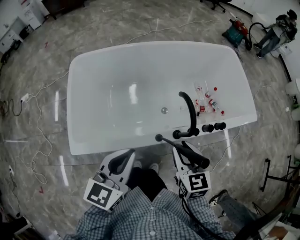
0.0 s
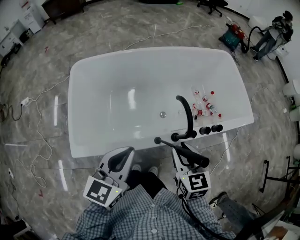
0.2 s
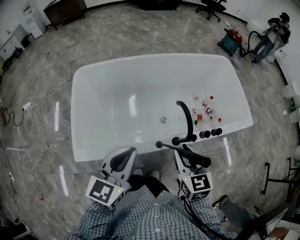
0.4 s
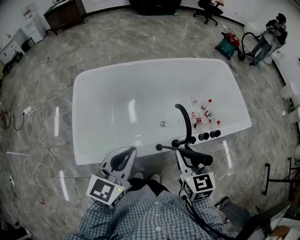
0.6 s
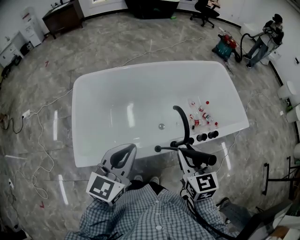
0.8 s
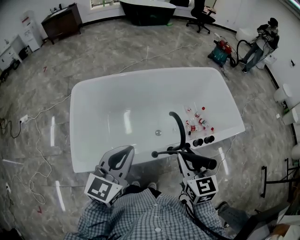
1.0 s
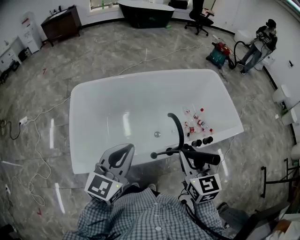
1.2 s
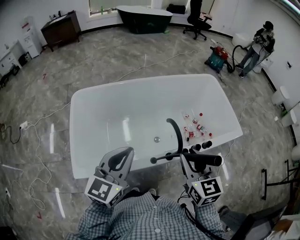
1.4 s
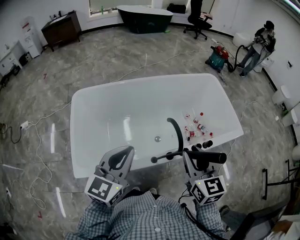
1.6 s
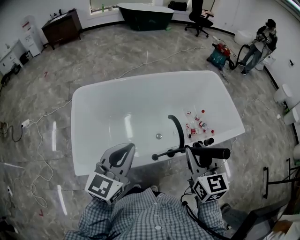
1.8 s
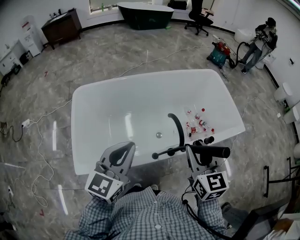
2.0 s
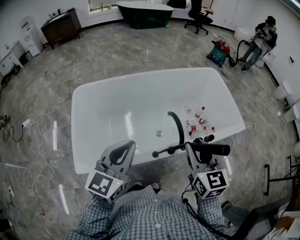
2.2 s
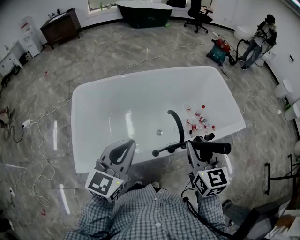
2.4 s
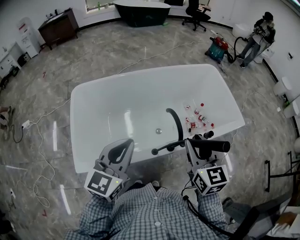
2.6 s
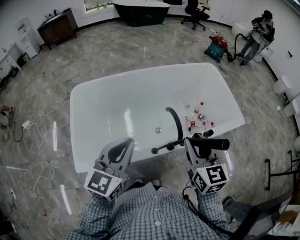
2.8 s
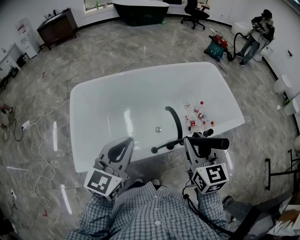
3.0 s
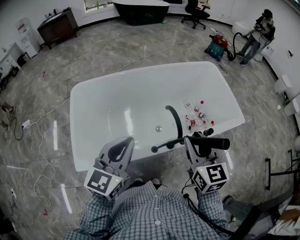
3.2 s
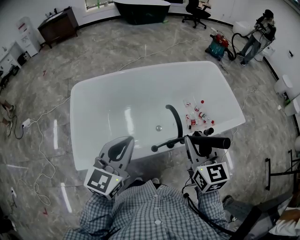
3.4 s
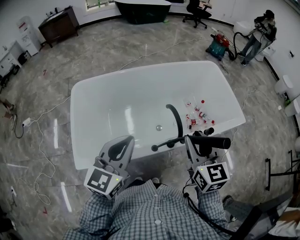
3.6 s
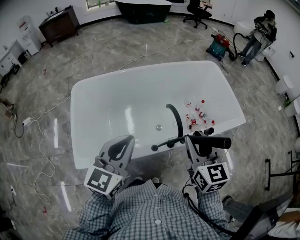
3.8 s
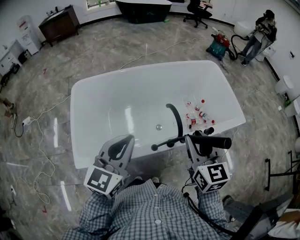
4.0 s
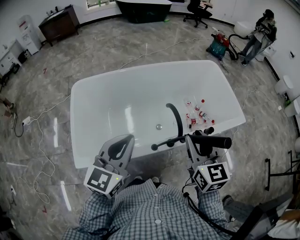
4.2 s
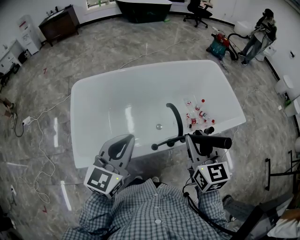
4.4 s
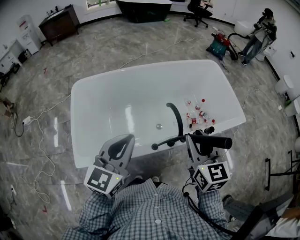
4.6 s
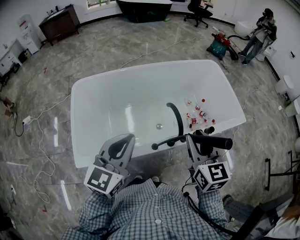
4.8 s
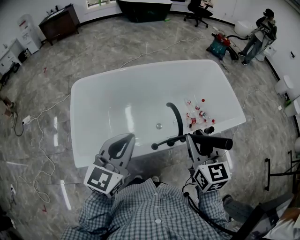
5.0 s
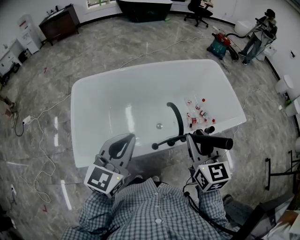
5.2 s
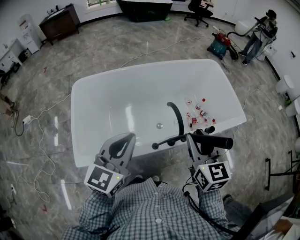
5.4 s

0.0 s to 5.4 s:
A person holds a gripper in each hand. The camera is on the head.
0.0 to 1.4 s: The grippers both shift upward by about 10 cm.
1.4 to 2.8 s: There are only small adjustments of the grippers.
2.8 to 5.4 s: Both grippers stay about where they are.

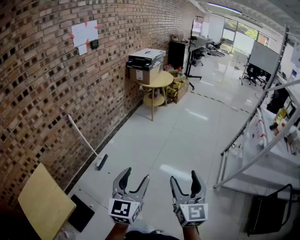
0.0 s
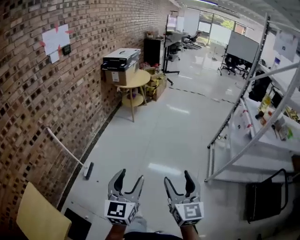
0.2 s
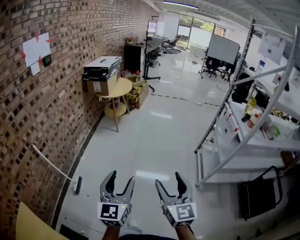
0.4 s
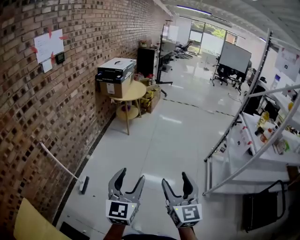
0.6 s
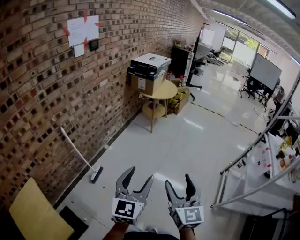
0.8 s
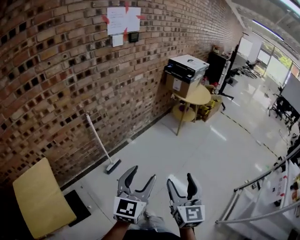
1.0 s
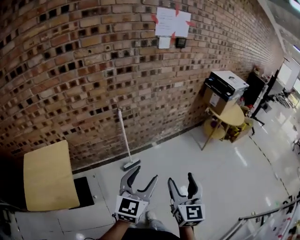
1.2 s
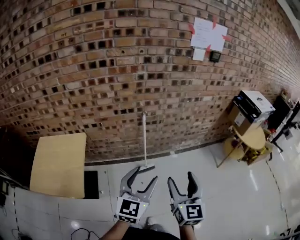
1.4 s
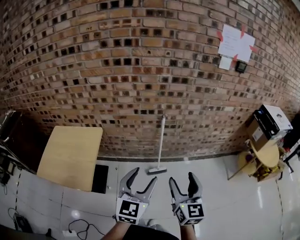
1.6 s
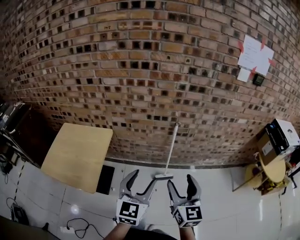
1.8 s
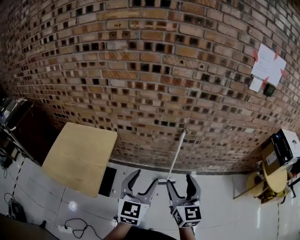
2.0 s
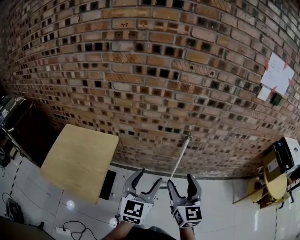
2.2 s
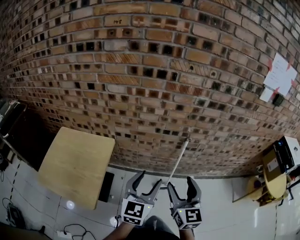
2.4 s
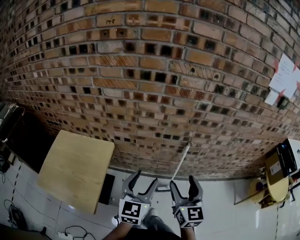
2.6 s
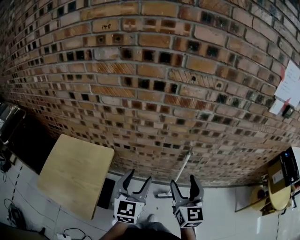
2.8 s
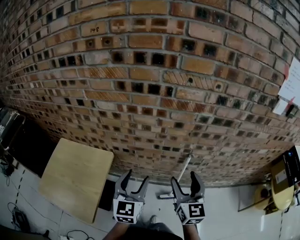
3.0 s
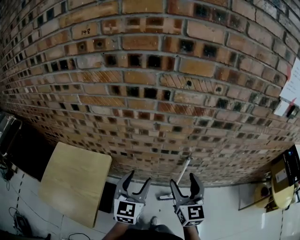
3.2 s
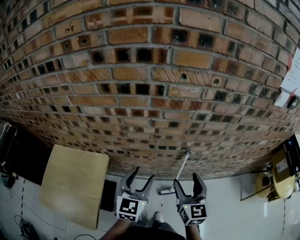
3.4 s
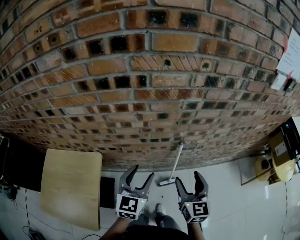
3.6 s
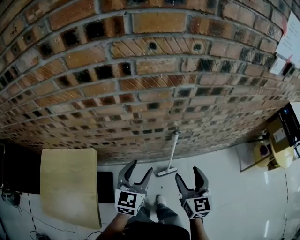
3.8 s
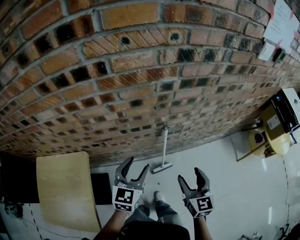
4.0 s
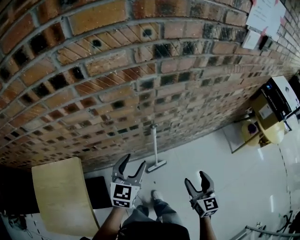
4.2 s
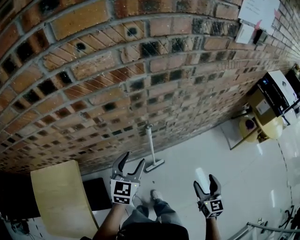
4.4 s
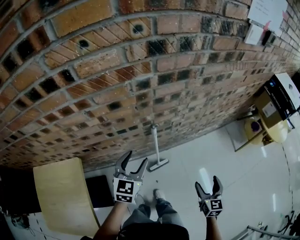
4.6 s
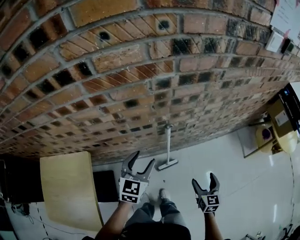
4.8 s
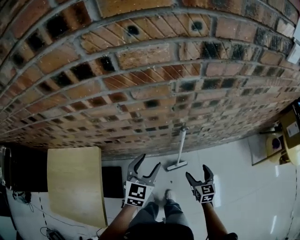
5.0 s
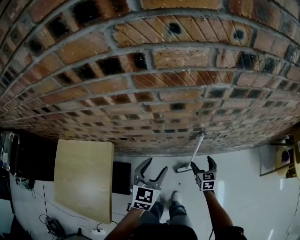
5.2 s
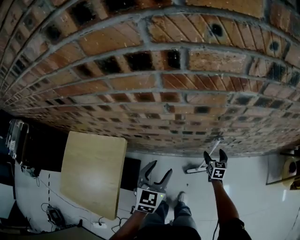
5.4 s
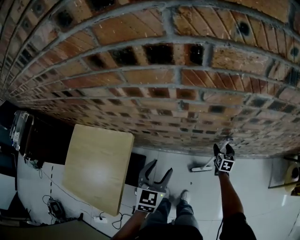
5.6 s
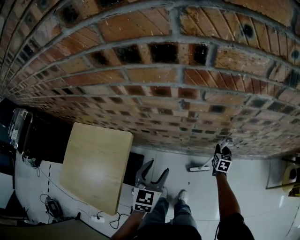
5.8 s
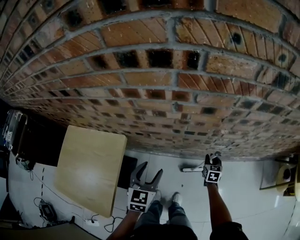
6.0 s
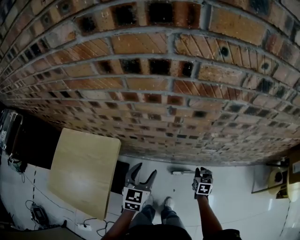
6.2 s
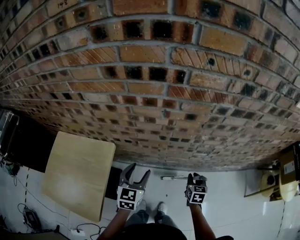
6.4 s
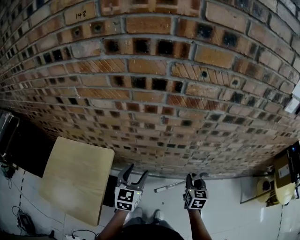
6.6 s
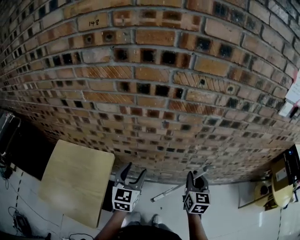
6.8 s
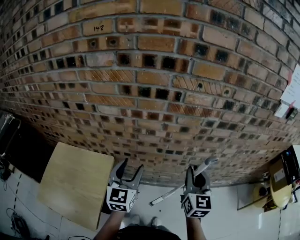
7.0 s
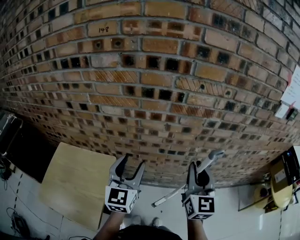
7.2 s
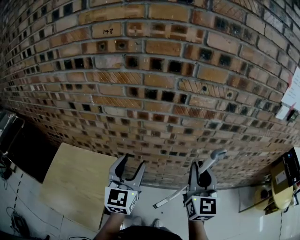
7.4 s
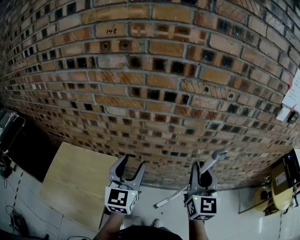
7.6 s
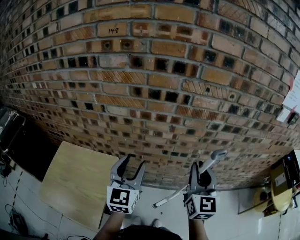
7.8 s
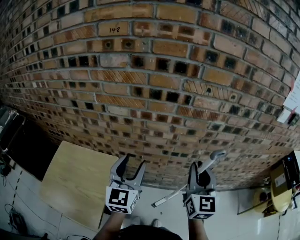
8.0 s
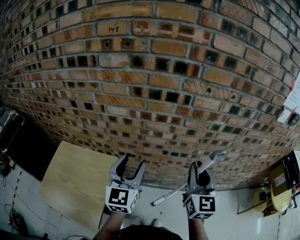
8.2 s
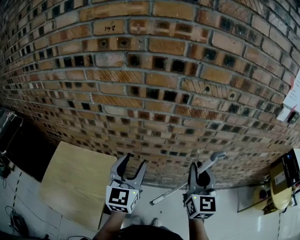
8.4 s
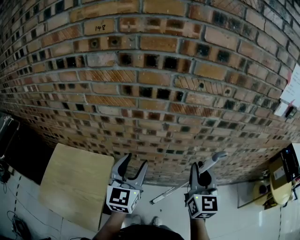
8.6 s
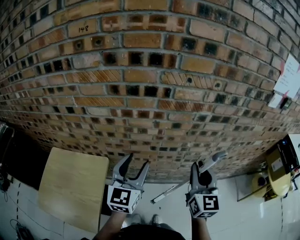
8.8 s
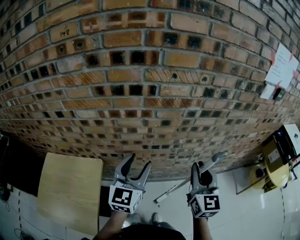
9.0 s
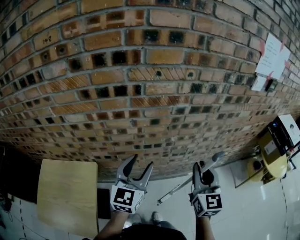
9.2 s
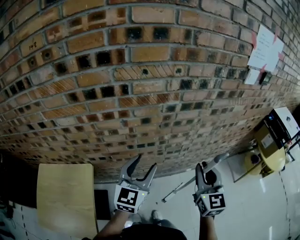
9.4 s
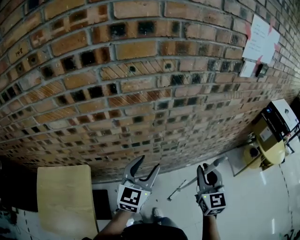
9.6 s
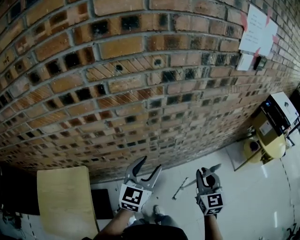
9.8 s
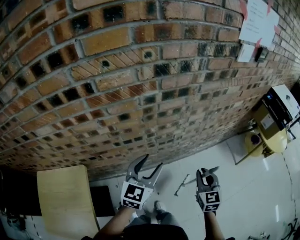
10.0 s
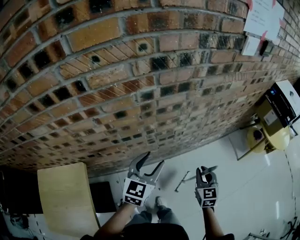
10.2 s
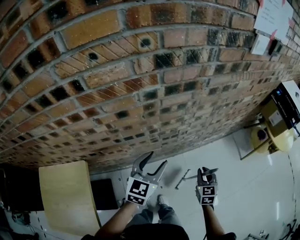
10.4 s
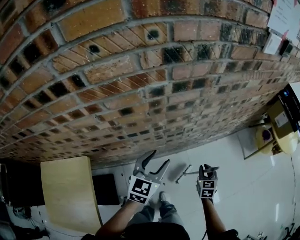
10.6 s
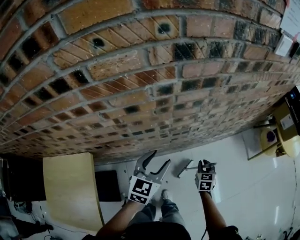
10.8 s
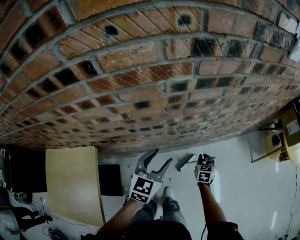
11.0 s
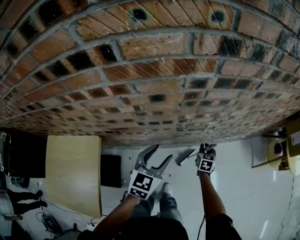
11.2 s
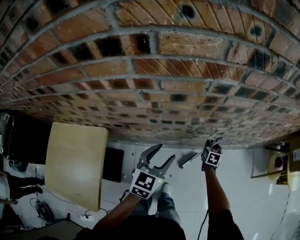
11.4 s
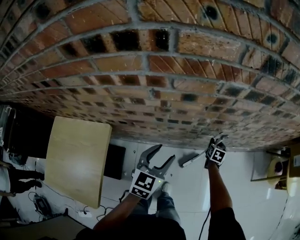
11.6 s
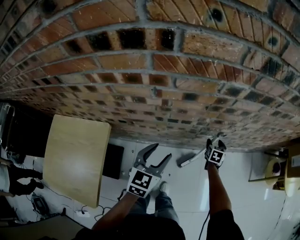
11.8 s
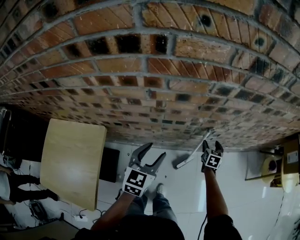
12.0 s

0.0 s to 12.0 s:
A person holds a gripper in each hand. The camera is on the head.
0.0 to 1.6 s: The left gripper changes place by roughly 40 cm, and changes its angle by roughly 60 degrees. Meanwhile the right gripper moves approximately 50 cm, and changes its angle by approximately 70 degrees.
1.6 to 3.0 s: The left gripper travels forward and to the left by approximately 35 cm. The right gripper heads forward, covering approximately 35 cm.
3.0 to 4.4 s: The right gripper changes place by roughly 35 cm, and swivels about 30 degrees. Meanwhile the left gripper changes place by approximately 25 cm, and swivels some 30 degrees.
4.4 to 6.0 s: The right gripper travels forward, to the left and downward by approximately 40 cm, rotates approximately 30 degrees, and closes up. Meanwhile the left gripper is displaced to the left by roughly 20 cm, and changes its angle by approximately 30 degrees.
6.0 to 7.6 s: The left gripper shifts about 25 cm upward, and turns by roughly 30 degrees, while the right gripper moves upward, roughly 50 cm, and tilts its fingers about 40 degrees upward.
7.6 to 9.0 s: The two grippers go approximately 10 cm to the right.
9.0 to 10.4 s: The right gripper shifts approximately 35 cm downward and to the right, and tilts its fingers approximately 30 degrees downward; the left gripper travels to the right, downward and forward by approximately 25 cm, and turns by about 30 degrees.
10.4 to 12.0 s: The left gripper shifts some 15 cm to the left, and changes its angle by some 20 degrees. The right gripper moves forward, to the left and downward, some 25 cm, and opens up.

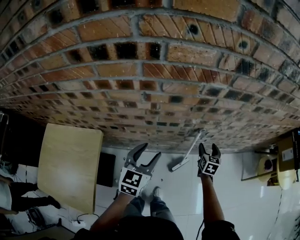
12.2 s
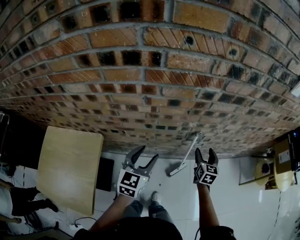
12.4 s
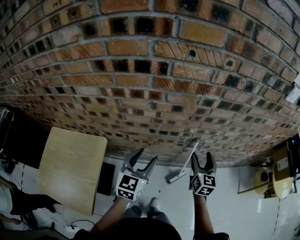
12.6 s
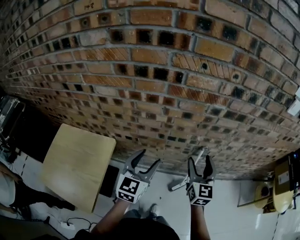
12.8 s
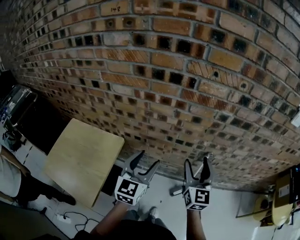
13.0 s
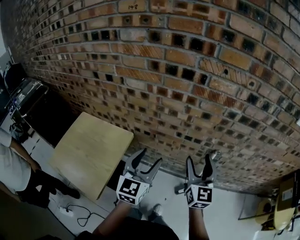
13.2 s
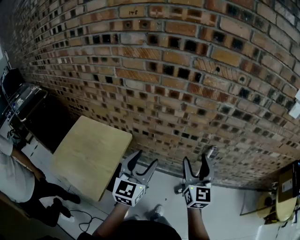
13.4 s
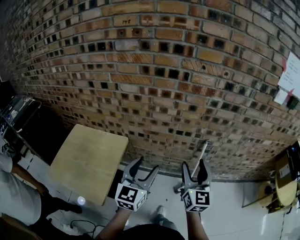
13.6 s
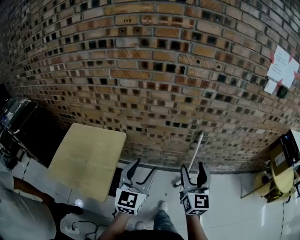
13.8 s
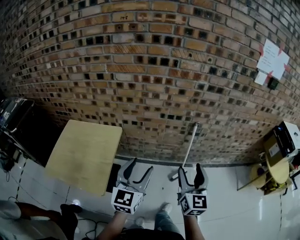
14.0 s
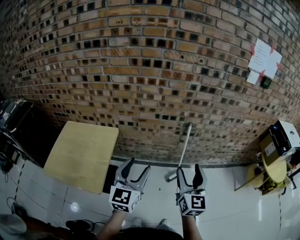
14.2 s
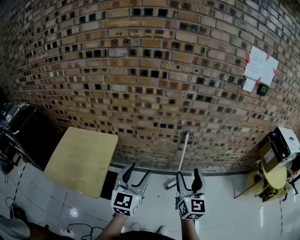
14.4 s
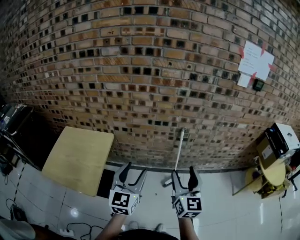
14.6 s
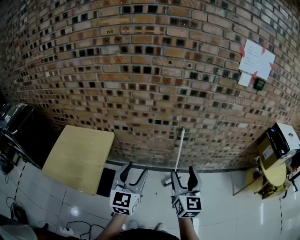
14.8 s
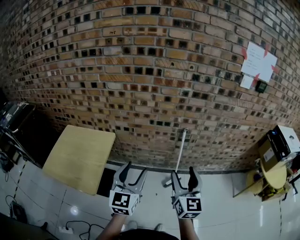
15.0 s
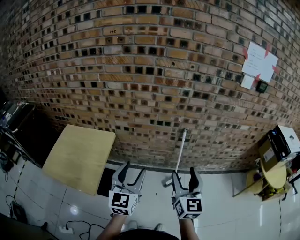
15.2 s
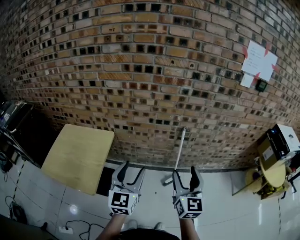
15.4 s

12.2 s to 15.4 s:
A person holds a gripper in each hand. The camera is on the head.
12.2 to 13.8 s: The right gripper is displaced backward, upward and to the left by some 50 cm, and tilts its fingers about 40 degrees upward; the left gripper shifts roughly 35 cm backward and upward, and turns by roughly 20 degrees.
13.8 to 15.4 s: The right gripper shifts roughly 10 cm backward and to the right. The left gripper travels backward by some 5 cm.

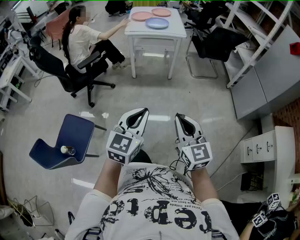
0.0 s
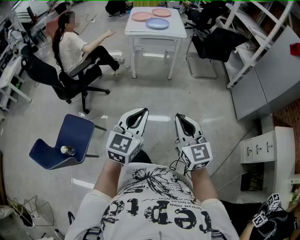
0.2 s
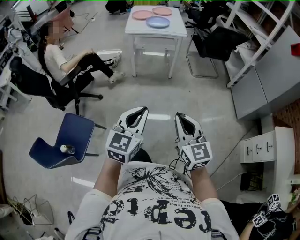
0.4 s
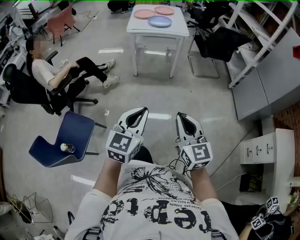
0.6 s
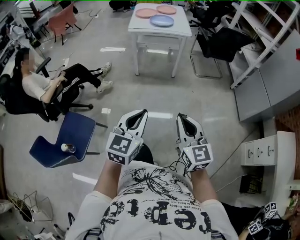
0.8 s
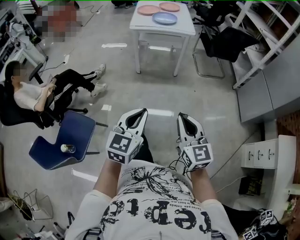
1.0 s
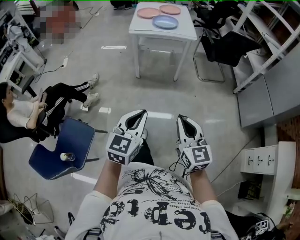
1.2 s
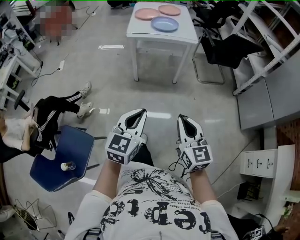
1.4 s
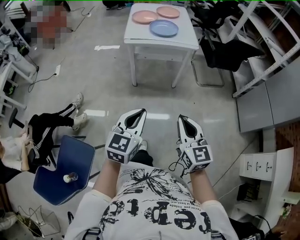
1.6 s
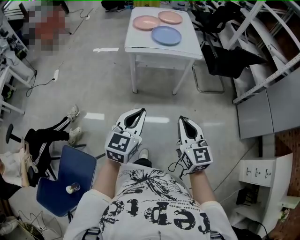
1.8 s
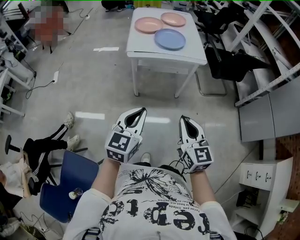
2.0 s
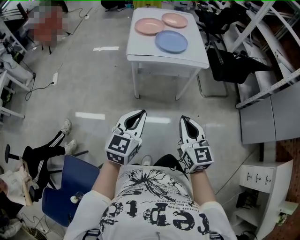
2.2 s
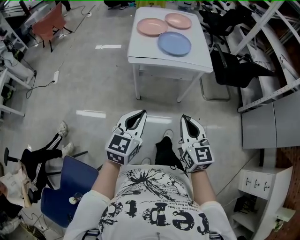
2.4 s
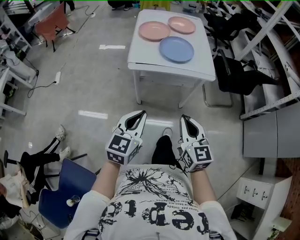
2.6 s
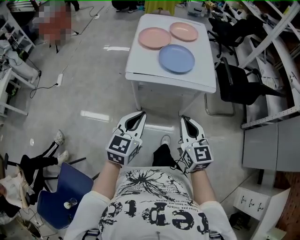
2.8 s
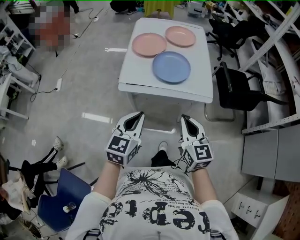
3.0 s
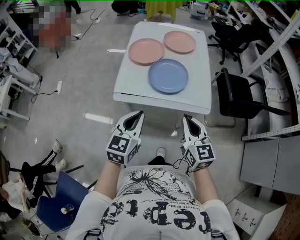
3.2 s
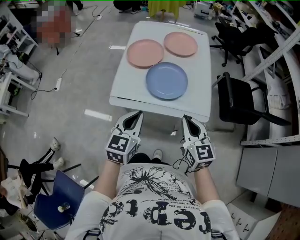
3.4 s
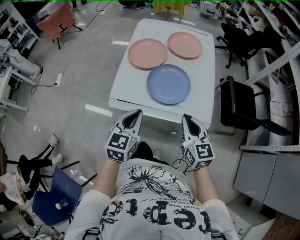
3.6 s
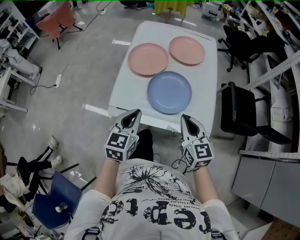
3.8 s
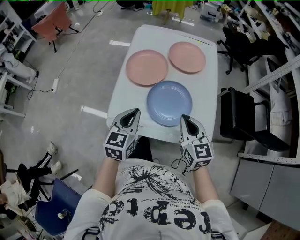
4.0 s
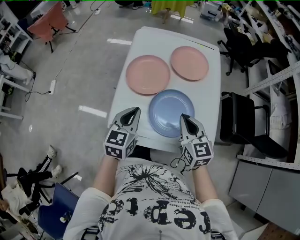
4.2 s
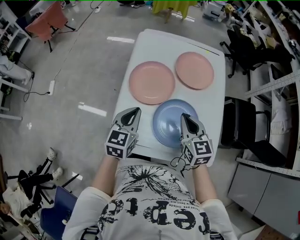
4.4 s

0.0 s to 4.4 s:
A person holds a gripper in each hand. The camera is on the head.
0.0 to 1.4 s: The grippers both shift forward by roughly 25 cm.
1.4 to 3.0 s: Both grippers are carried forward, roughly 60 cm.
3.0 to 4.4 s: The pair of grippers is taken forward, some 50 cm.
